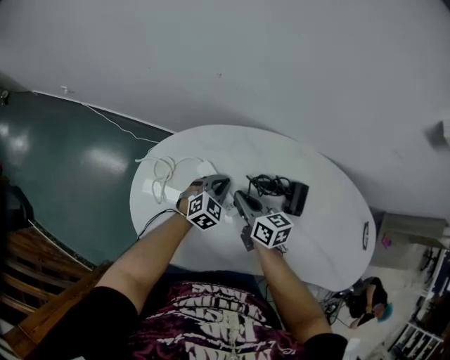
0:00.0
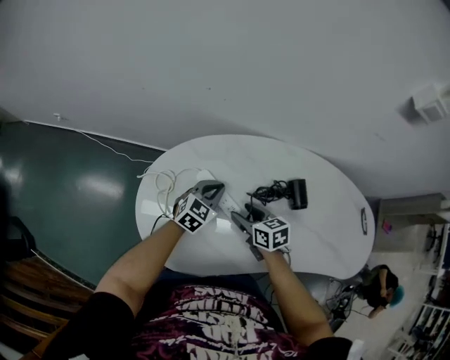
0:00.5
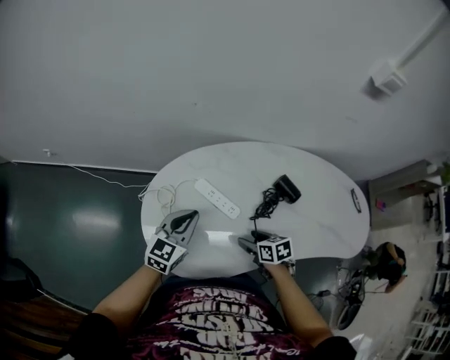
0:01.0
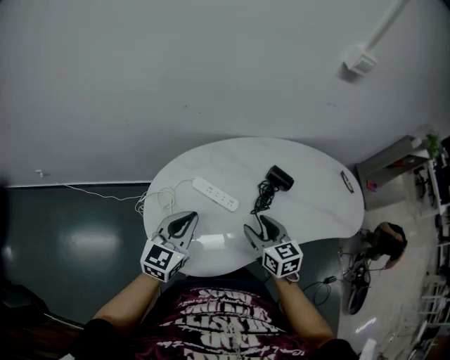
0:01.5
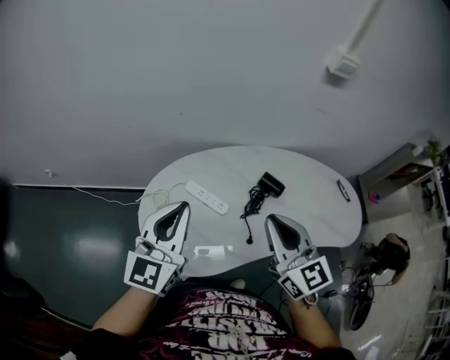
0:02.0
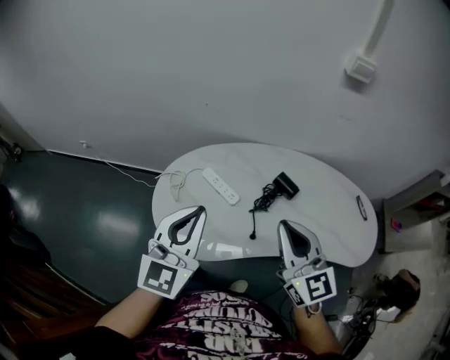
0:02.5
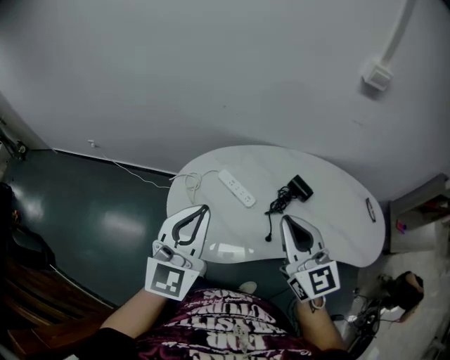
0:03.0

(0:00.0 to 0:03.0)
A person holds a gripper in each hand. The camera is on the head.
0:00.0 - 0:01.5: The left gripper moves upward, to the left and backward, approximately 30 cm, and changes its angle by roughly 30 degrees, while the right gripper moves backward and upward, about 20 cm, swivels roughly 30 degrees, and opens its fingers.
0:01.5 - 0:03.0: The left gripper is displaced upward and backward by approximately 20 cm, and turns by roughly 30 degrees. The right gripper is displaced upward by roughly 20 cm, rotates some 30 degrees, and closes up.

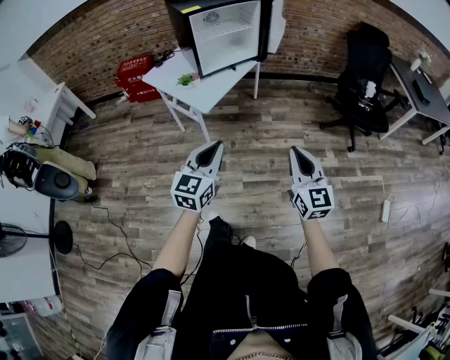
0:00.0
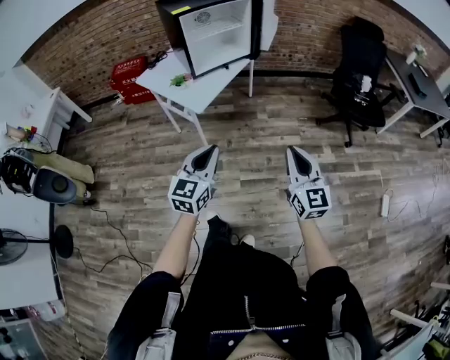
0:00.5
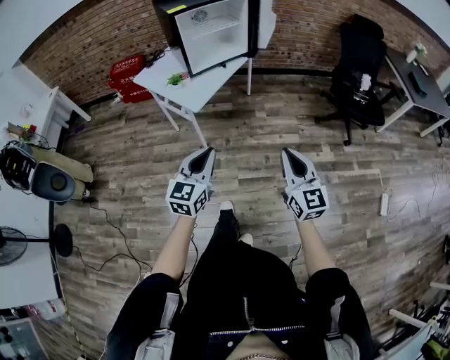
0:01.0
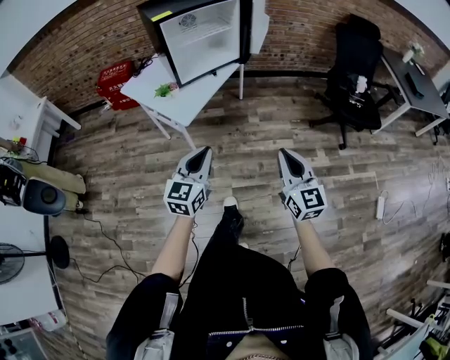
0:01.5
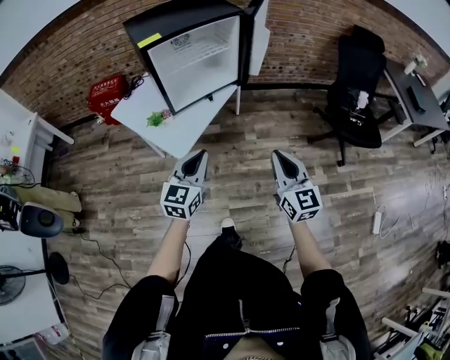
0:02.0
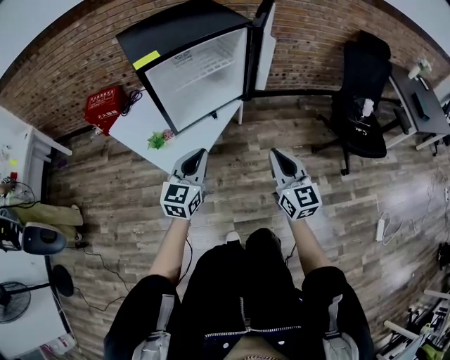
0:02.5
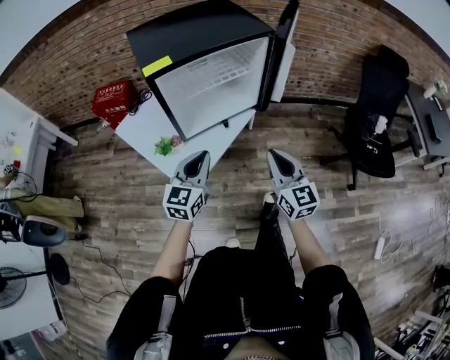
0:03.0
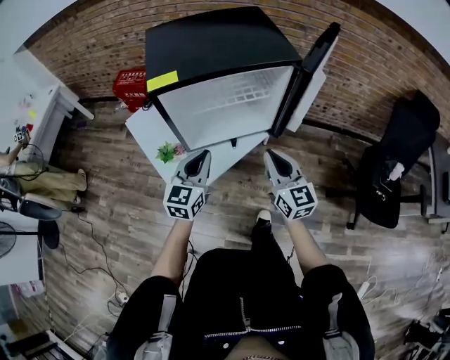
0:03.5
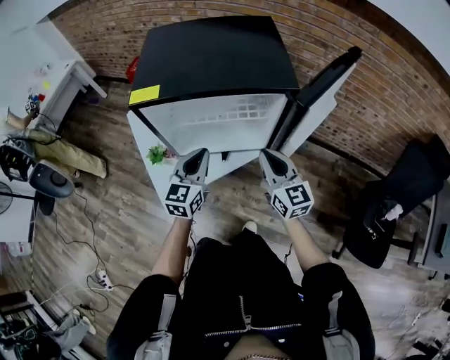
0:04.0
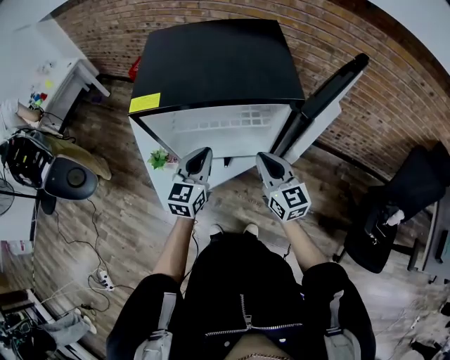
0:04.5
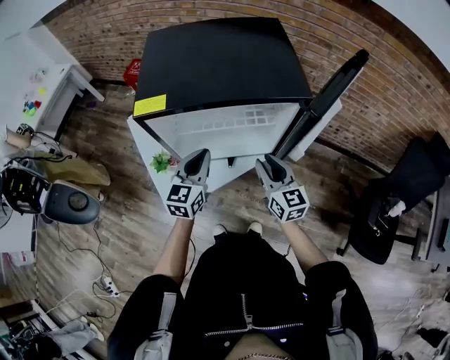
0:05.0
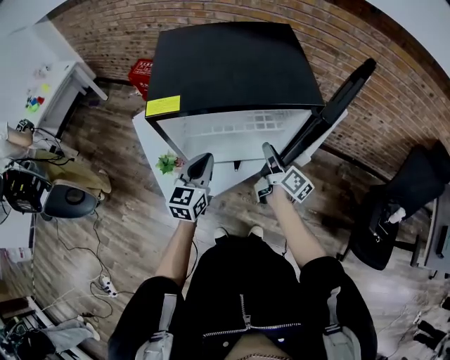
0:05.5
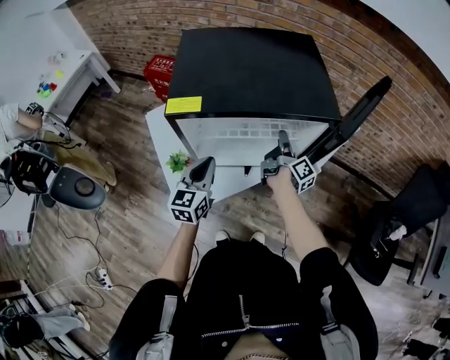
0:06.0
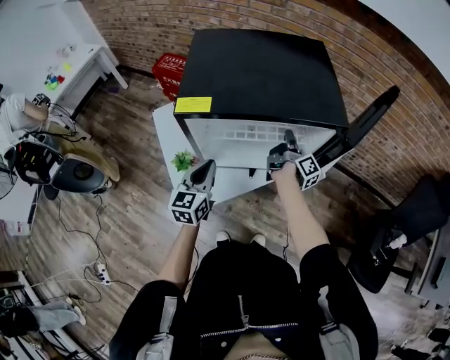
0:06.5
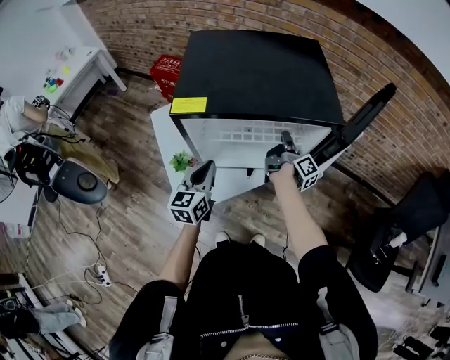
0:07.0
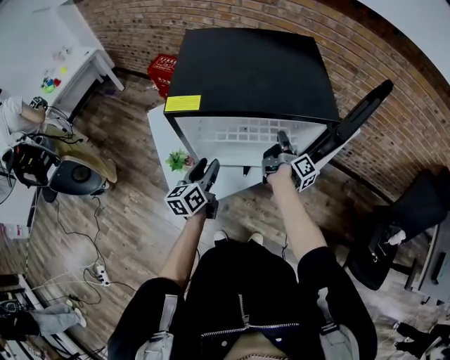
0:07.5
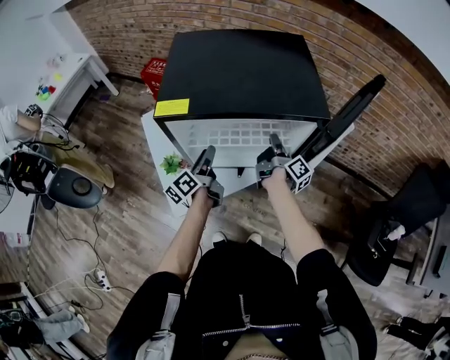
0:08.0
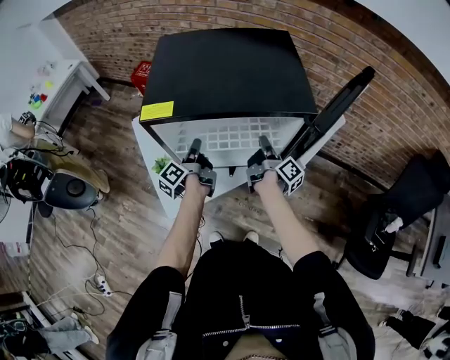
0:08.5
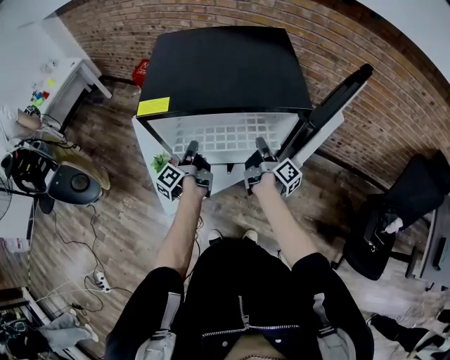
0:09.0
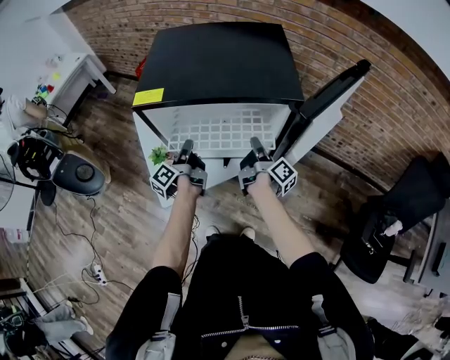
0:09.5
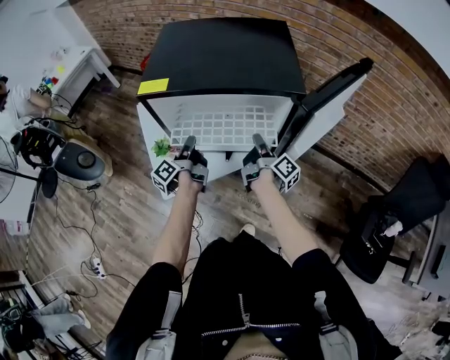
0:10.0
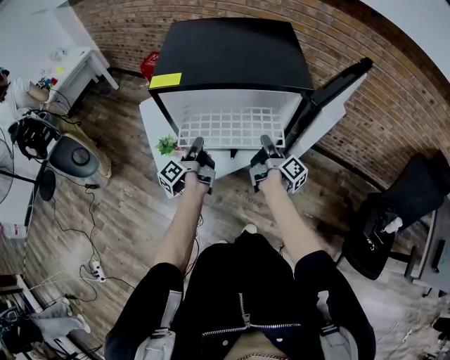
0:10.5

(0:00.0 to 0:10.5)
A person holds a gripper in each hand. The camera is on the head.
0:00.0 - 0:02.0: Both grippers travel together forward, some 25 cm.
0:02.0 - 0:04.0: The left gripper changes place by approximately 35 cm, and swivels approximately 30 degrees; the right gripper changes place by some 40 cm, and swivels some 30 degrees.
0:04.0 - 0:06.5: The left gripper heads to the left, covering some 10 cm; the right gripper moves forward and downward, some 20 cm, rolls clockwise, seen from behind, by about 80 degrees, and opens, then closes again.
0:06.5 - 0:08.5: The left gripper moves forward, roughly 10 cm, rolls counterclockwise, seen from behind, by approximately 70 degrees, and opens and closes again.
0:08.5 - 0:10.5: Both grippers travel together backward, about 5 cm.

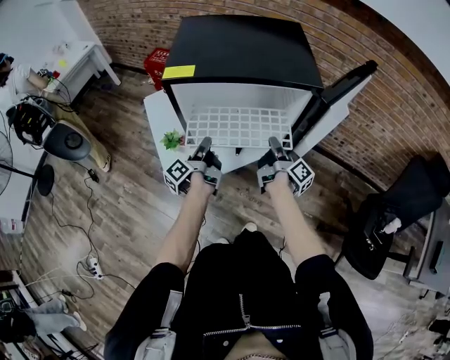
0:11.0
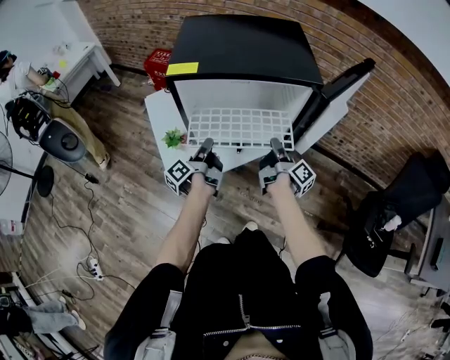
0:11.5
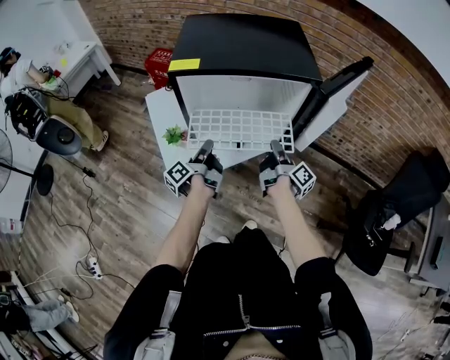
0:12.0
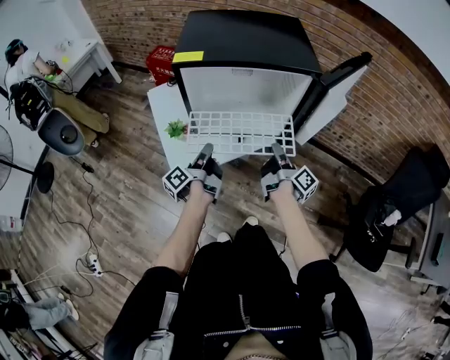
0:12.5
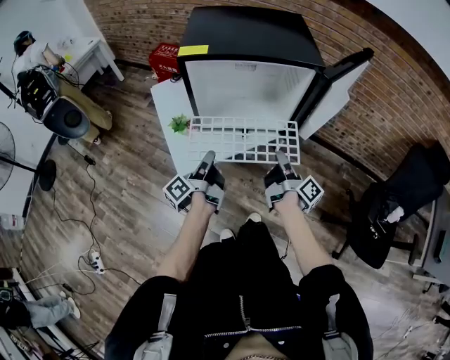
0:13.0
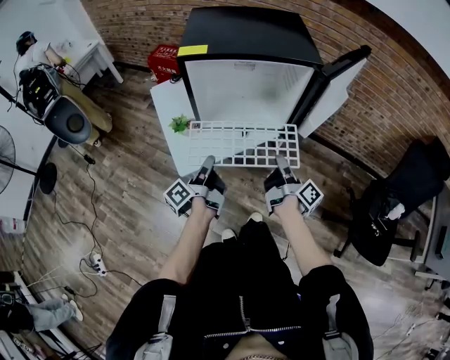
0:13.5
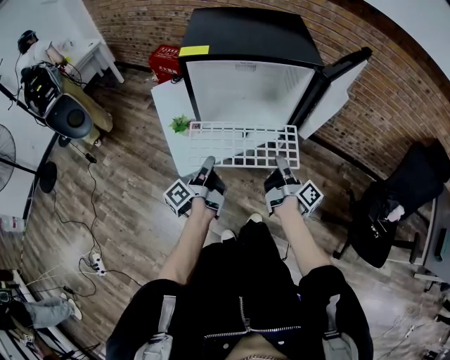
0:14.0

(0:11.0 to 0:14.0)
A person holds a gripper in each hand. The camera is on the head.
0:11.0 - 0:12.5: Both grippers travel together backward, about 10 cm.
0:12.5 - 0:14.0: Both grippers travel together backward, approximately 10 cm.

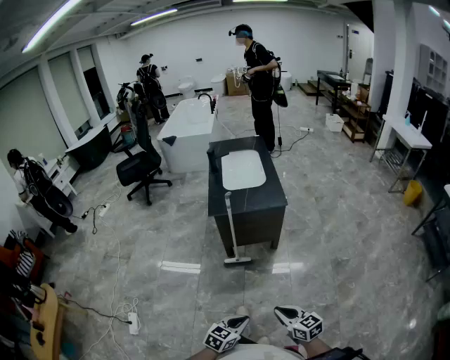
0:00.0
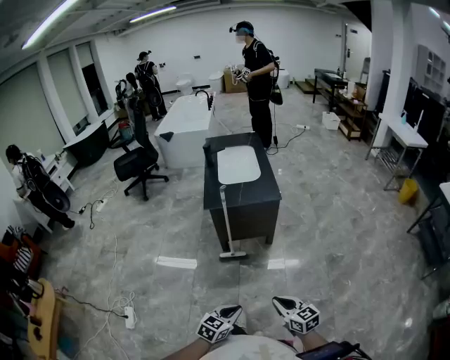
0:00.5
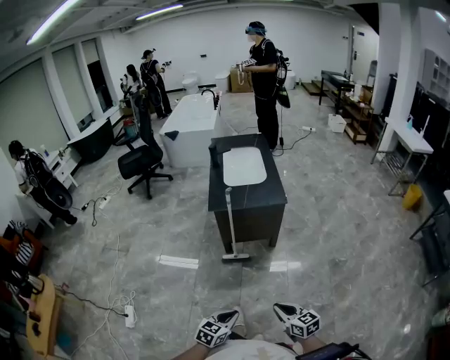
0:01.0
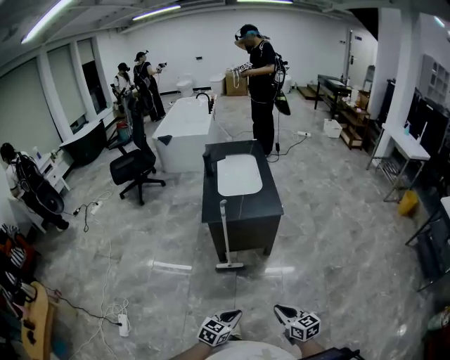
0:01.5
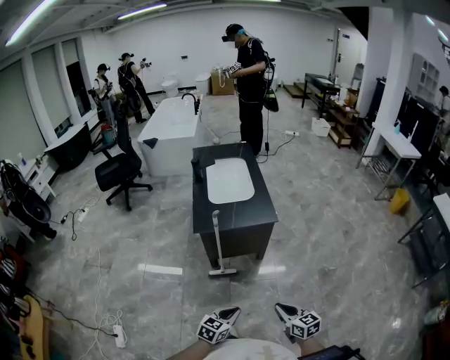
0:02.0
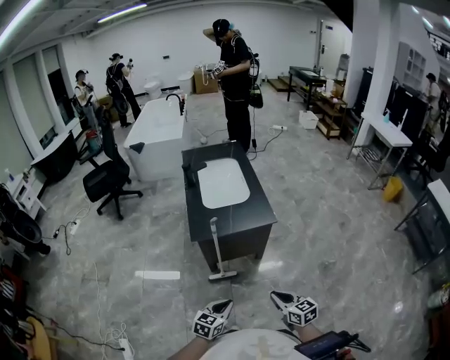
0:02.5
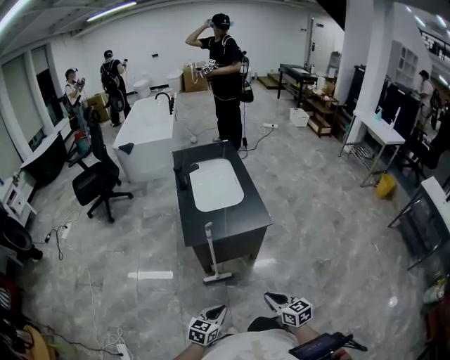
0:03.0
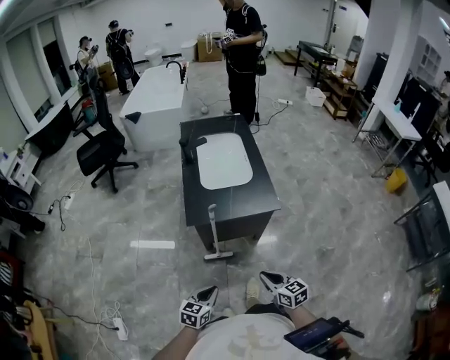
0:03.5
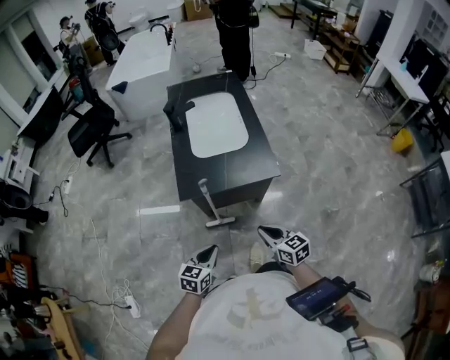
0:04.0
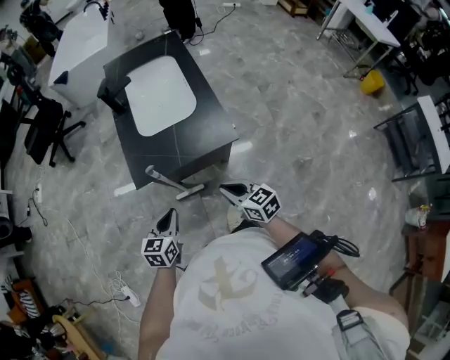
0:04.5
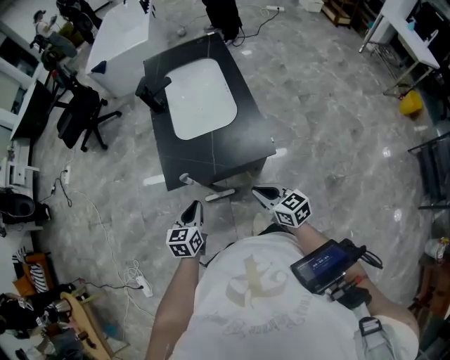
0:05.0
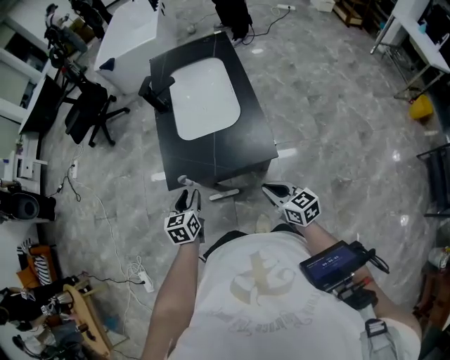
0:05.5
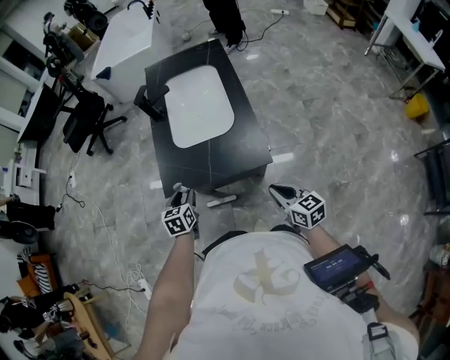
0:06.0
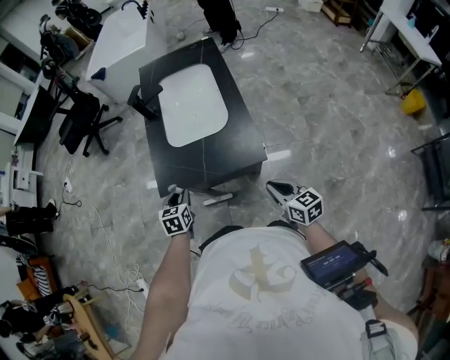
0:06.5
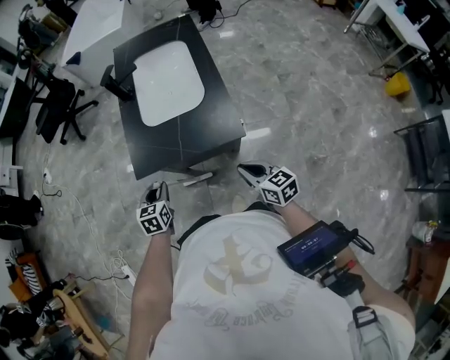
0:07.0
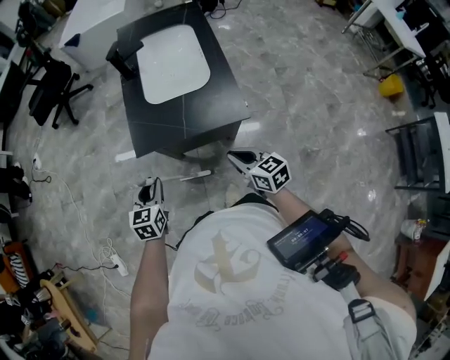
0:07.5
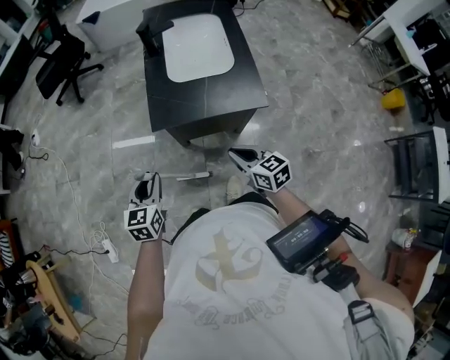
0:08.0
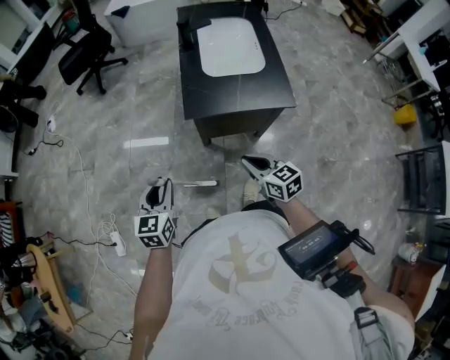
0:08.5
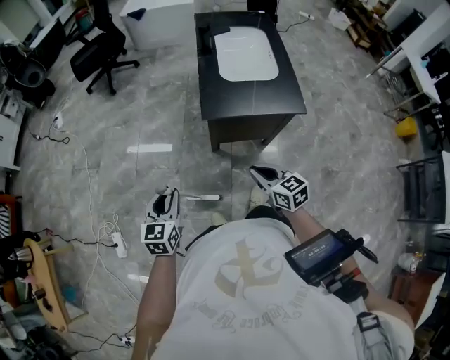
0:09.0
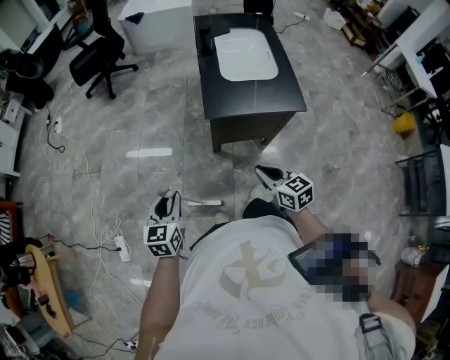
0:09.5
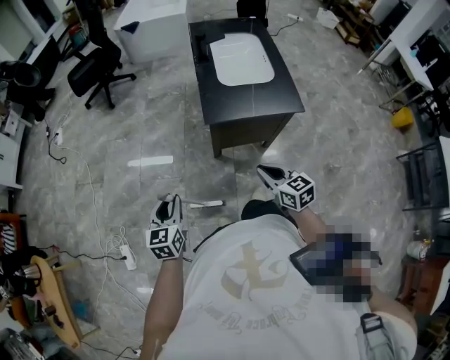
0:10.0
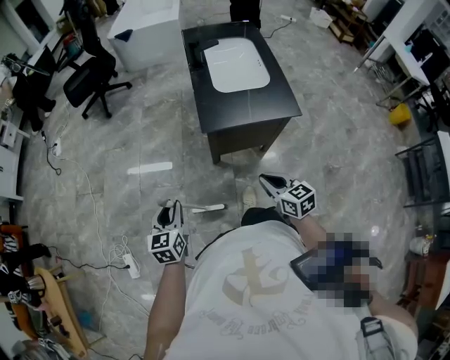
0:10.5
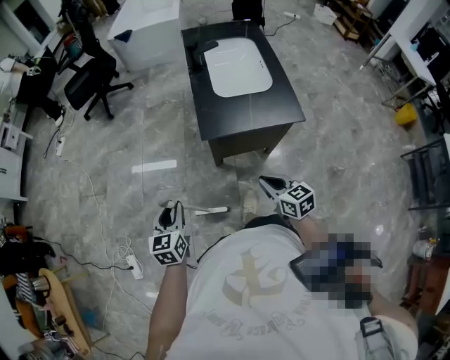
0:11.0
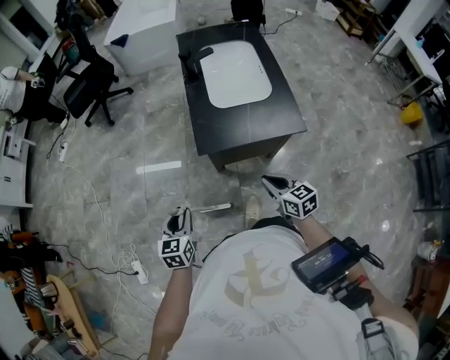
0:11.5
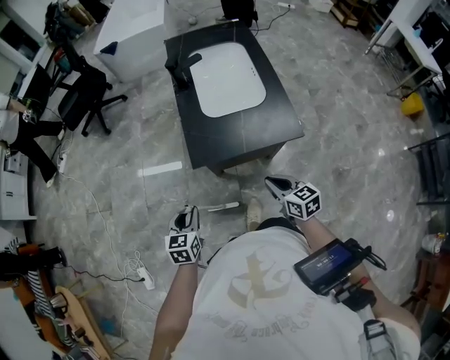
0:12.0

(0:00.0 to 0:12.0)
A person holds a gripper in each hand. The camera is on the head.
0:00.0 - 0:02.0: The two grippers go about 15 cm forward.
0:02.0 - 0:04.0: The left gripper heads forward and to the left, covering about 20 cm, while the right gripper heads forward, covering about 25 cm.
0:04.0 - 0:06.0: The right gripper moves to the right and forward, about 15 cm, while the left gripper goes some 20 cm forward, turns by some 30 degrees, and opens its fingers.
0:06.0 - 0:08.0: The left gripper shifts roughly 20 cm backward, to the left and upward, while the right gripper heads to the left, covering roughly 15 cm.
0:08.0 - 0:10.0: The grippers both shift to the left and backward by about 15 cm.
0:10.0 - 0:12.0: Both grippers move to the right and forward, about 15 cm.
